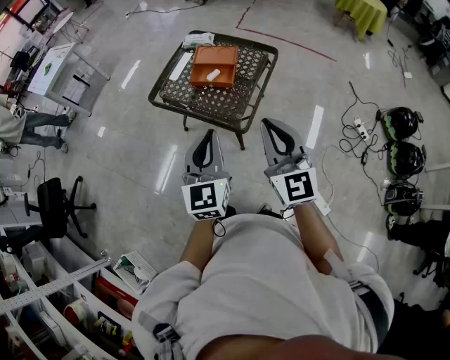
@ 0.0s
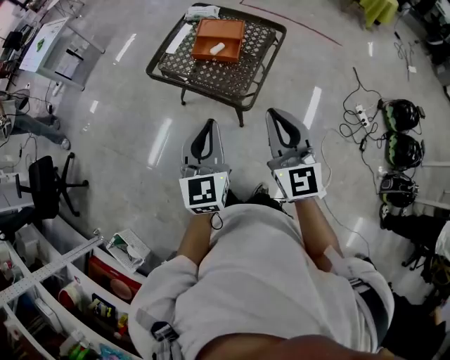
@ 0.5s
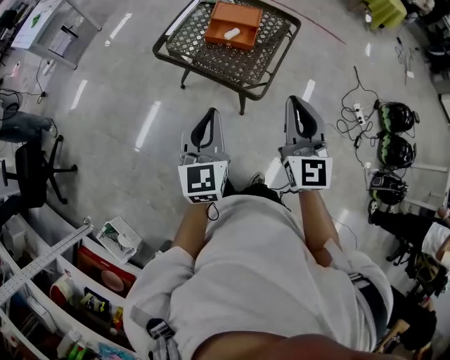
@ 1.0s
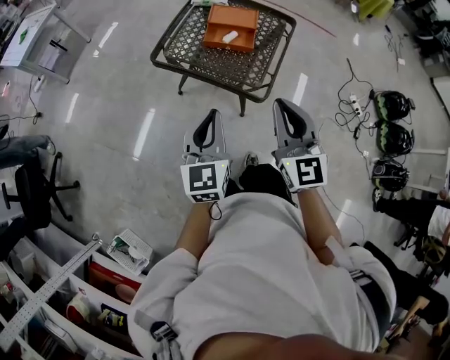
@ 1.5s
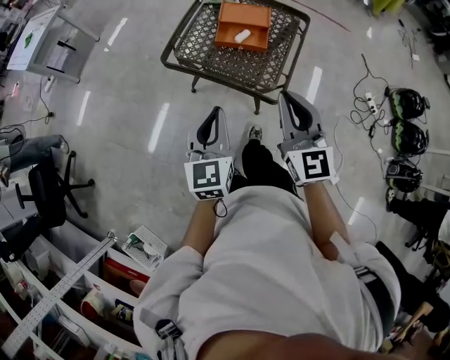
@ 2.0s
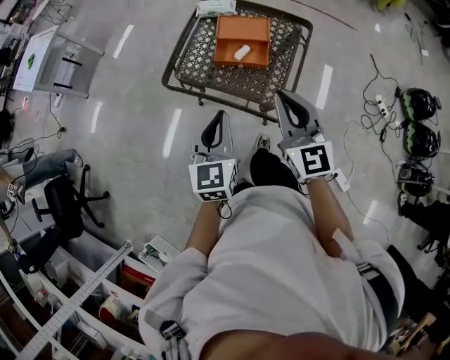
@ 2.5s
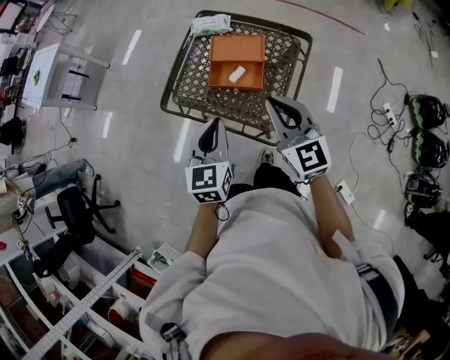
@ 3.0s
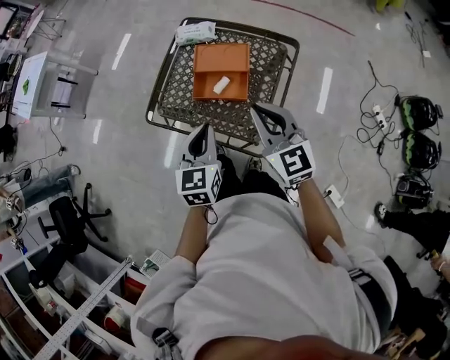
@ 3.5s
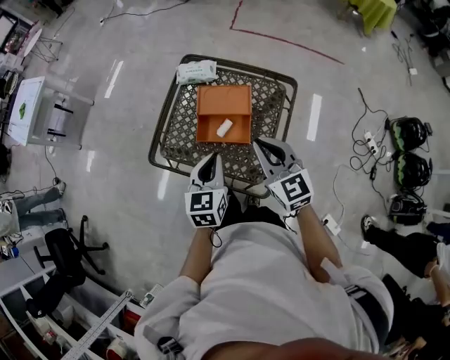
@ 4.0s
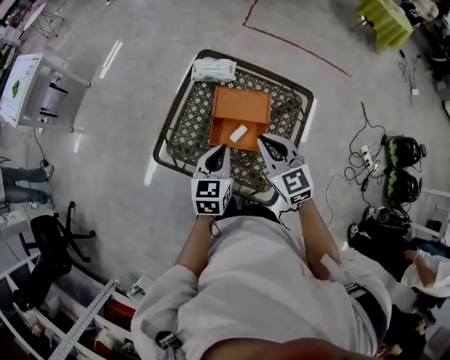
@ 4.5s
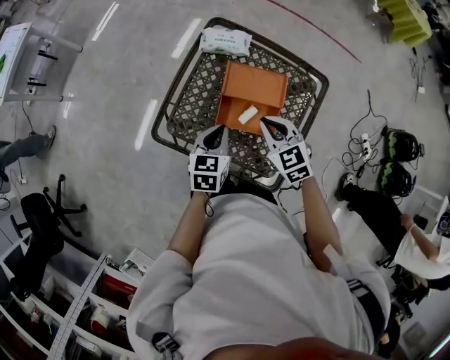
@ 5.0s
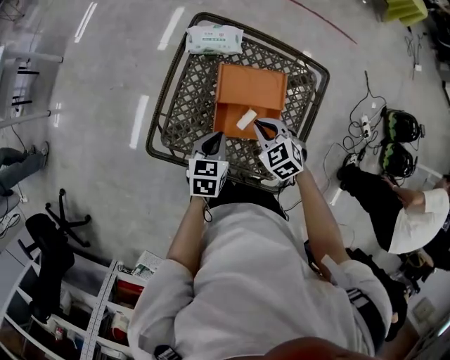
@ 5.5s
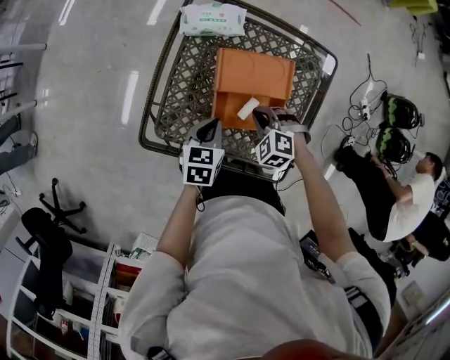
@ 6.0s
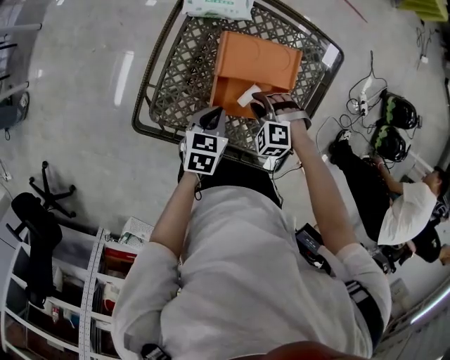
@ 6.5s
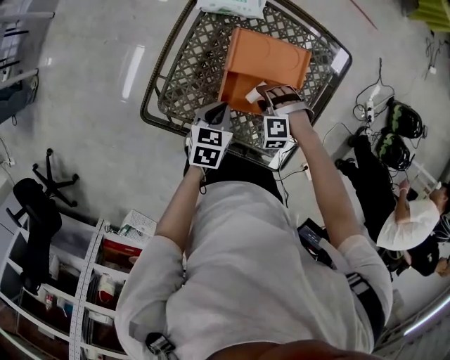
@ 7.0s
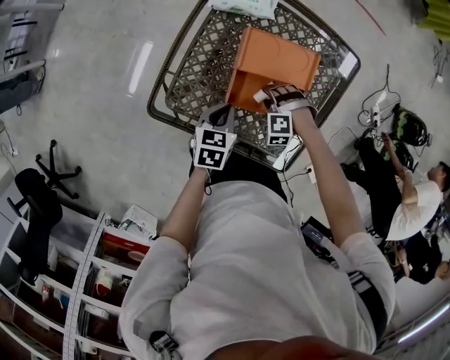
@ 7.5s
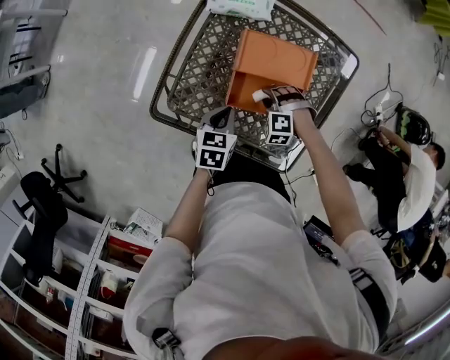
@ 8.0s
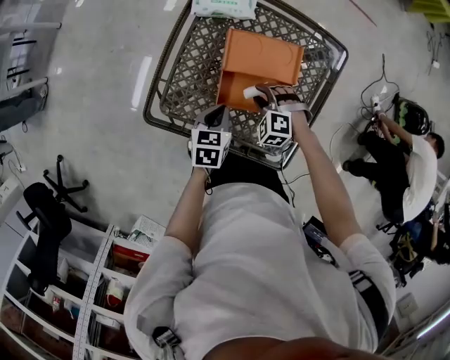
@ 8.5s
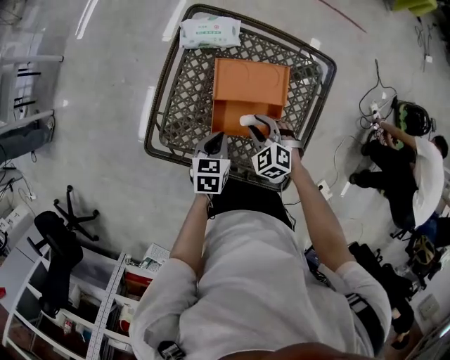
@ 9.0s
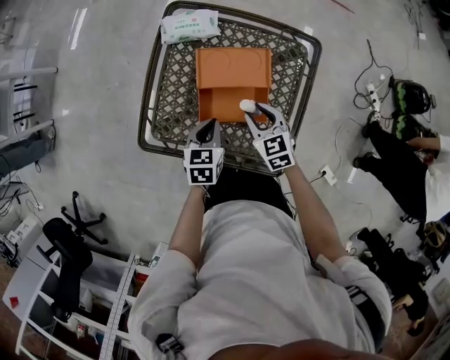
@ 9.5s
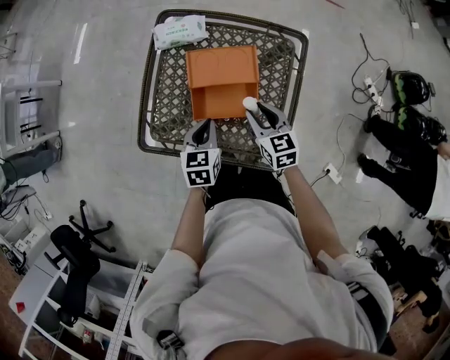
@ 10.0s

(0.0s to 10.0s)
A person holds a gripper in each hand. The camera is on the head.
0.0s - 2.0s: The right gripper is displaced to the left and forward by some 20 cm; the left gripper heads to the left, forward and downward, covering about 20 cm.
2.0s - 4.0s: The left gripper goes roughly 30 cm forward and to the right. Meanwhile the right gripper is displaced forward by approximately 30 cm.
4.0s - 6.0s: The right gripper goes roughly 35 cm downward and forward, and points its fingers some 50 degrees further downward, while the left gripper goes about 30 cm downward, forward and to the left, and changes its angle by approximately 30 degrees.
6.0s - 8.0s: The right gripper shifts some 5 cm downward, rotates some 30 degrees, and opens.
8.0s - 10.0s: The right gripper goes roughly 15 cm upward, and twists about 80 degrees clockwise, seen from behind. The left gripper heads upward, covering roughly 10 cm.

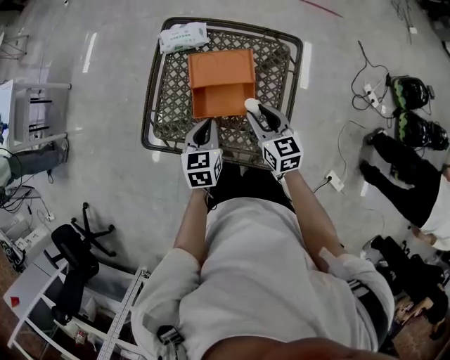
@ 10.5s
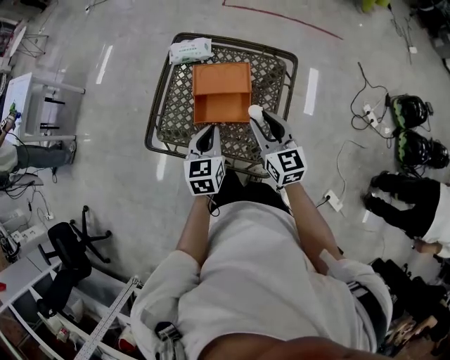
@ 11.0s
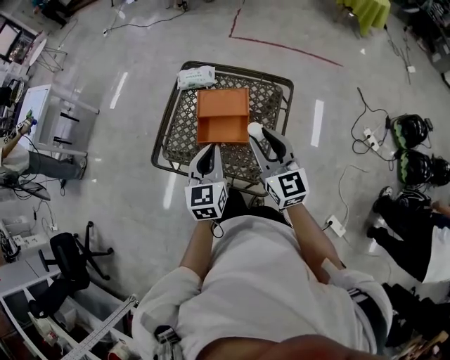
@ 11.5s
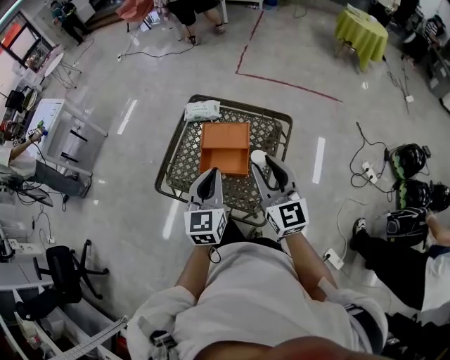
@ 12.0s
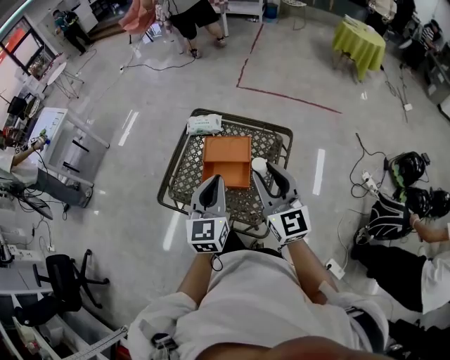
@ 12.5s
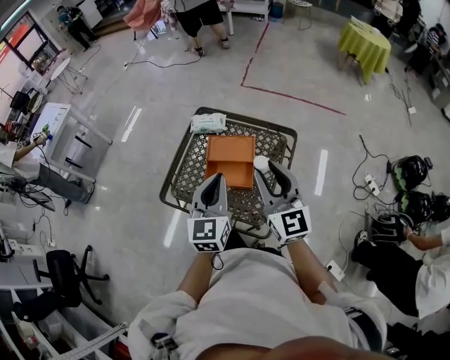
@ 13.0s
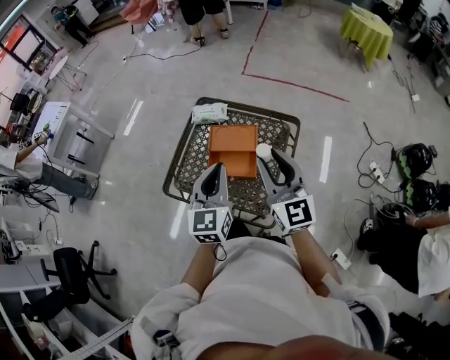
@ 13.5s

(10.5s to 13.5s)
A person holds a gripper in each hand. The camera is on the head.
10.5s - 12.0s: The right gripper shifts about 25 cm upward, and changes its angle by approximately 30 degrees; the left gripper shifts roughly 25 cm upward and backward, and swivels about 30 degrees.
12.0s - 13.5s: There are only small adjustments of the grippers.

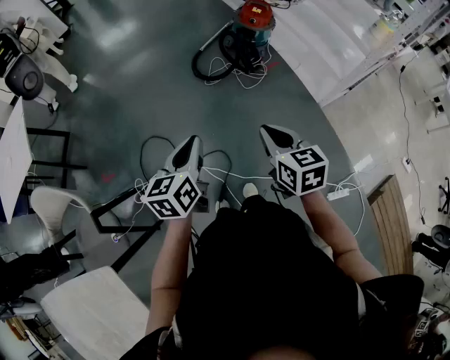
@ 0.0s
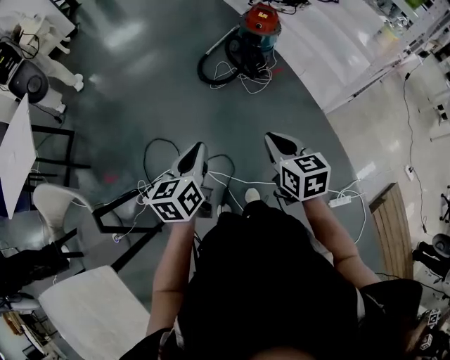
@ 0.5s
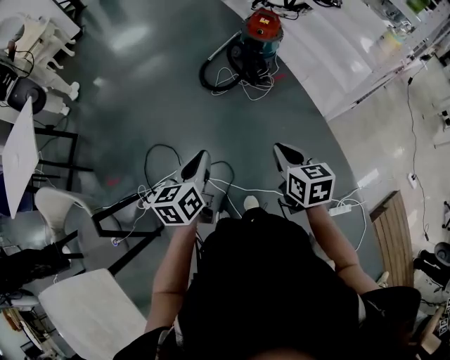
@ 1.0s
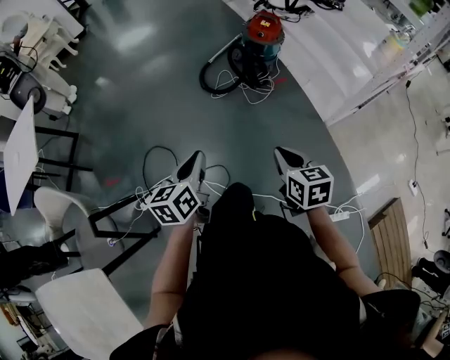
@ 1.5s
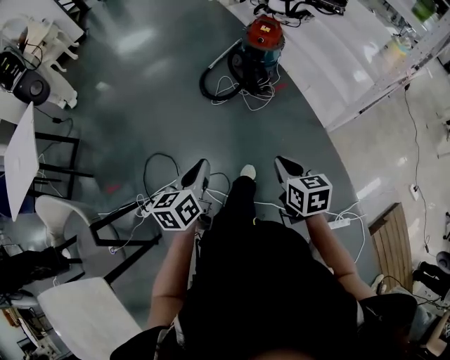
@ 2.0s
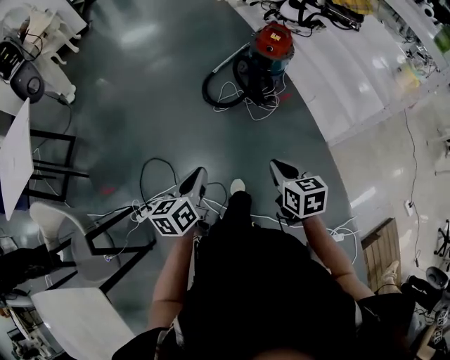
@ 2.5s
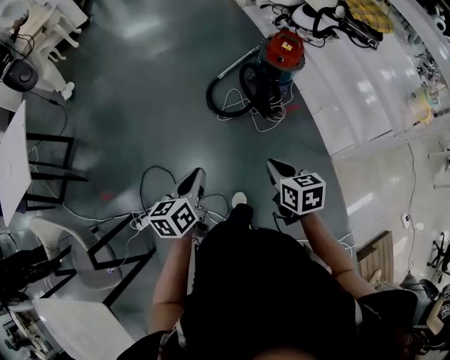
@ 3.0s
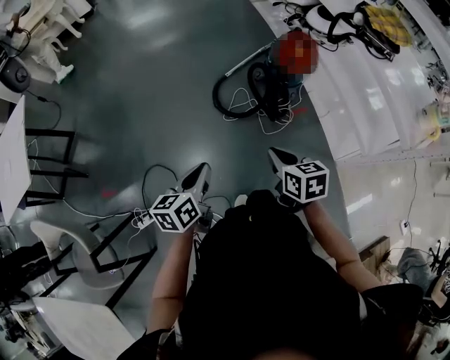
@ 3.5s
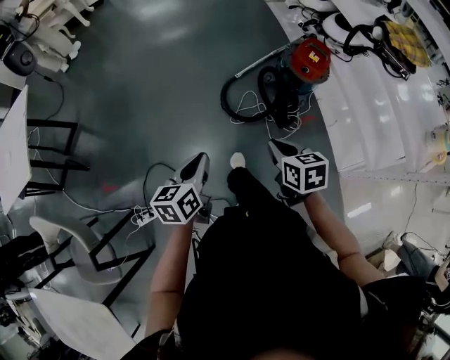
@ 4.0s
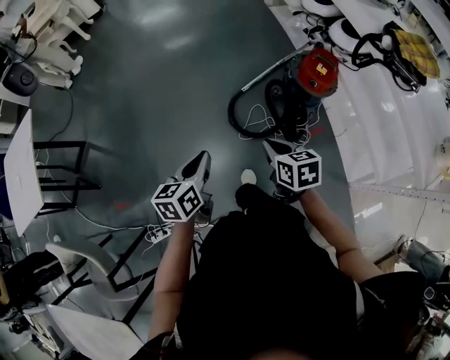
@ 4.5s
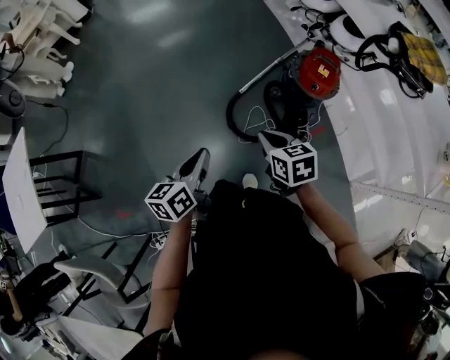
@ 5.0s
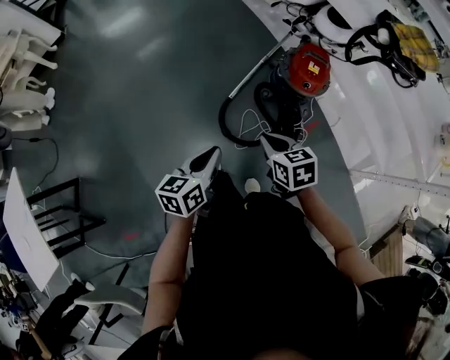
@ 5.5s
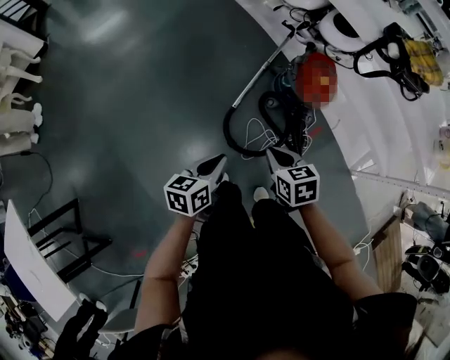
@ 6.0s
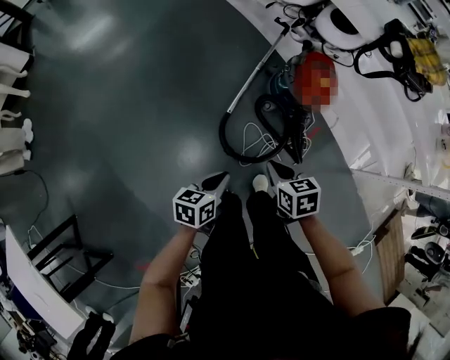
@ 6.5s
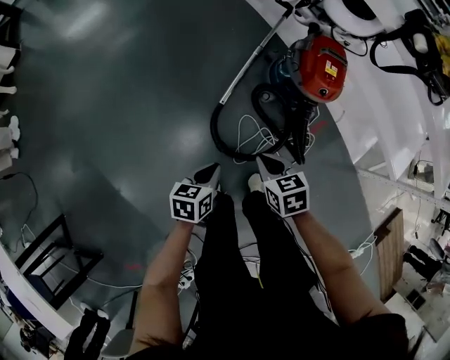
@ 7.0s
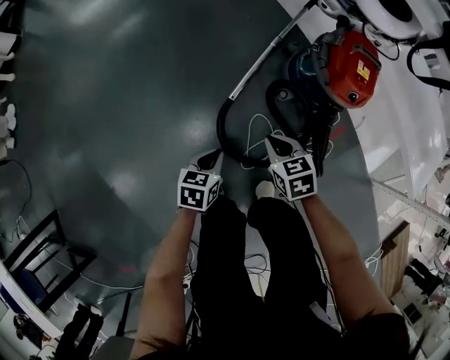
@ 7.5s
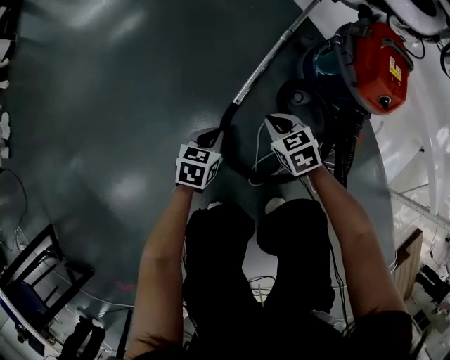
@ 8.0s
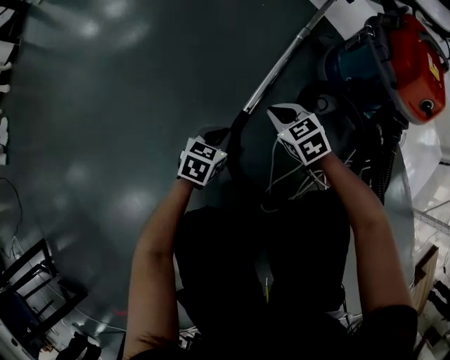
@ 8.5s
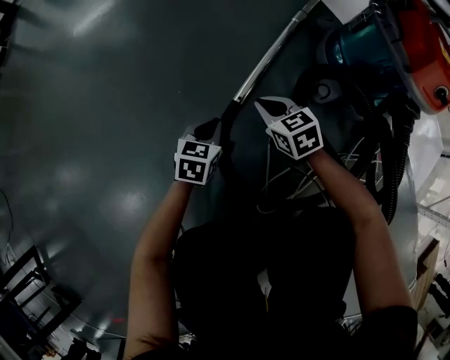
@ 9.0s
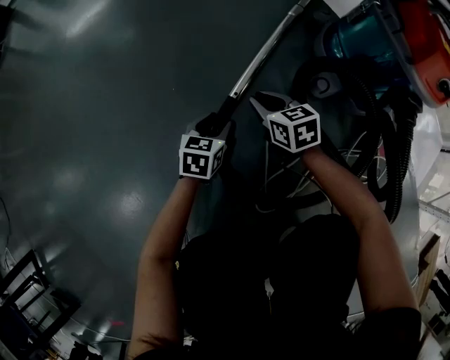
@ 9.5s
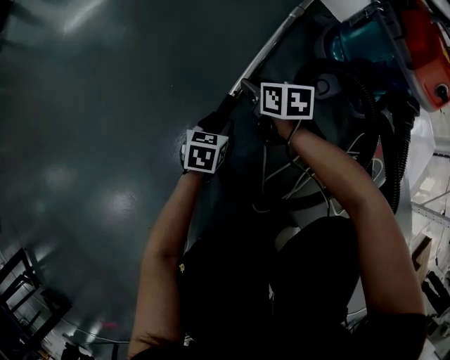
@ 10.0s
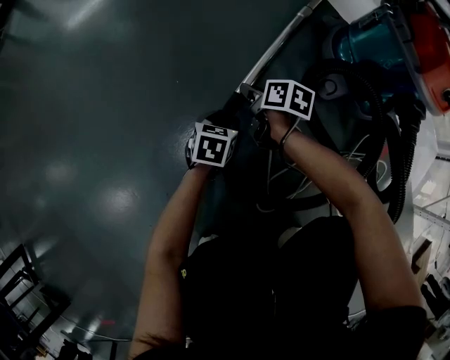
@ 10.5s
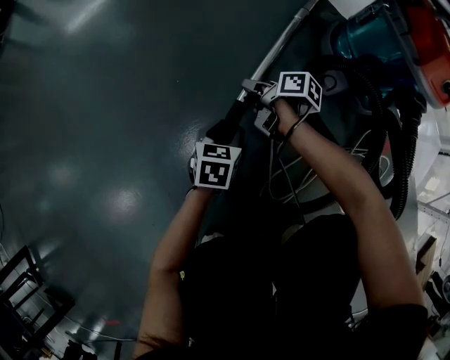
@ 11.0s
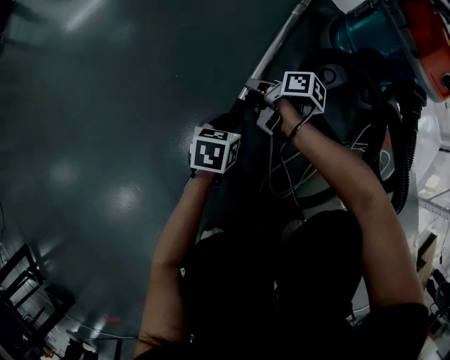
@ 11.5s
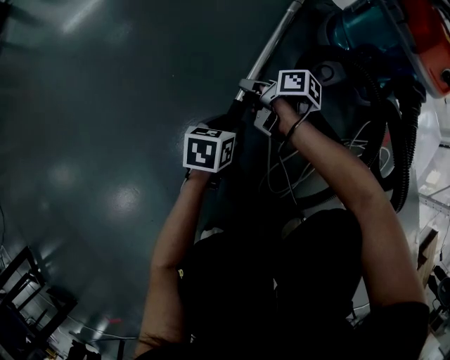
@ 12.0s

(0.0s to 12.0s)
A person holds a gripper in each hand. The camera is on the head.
0.0s - 2.0s: The right gripper goes some 10 cm to the right and downward, while the left gripper goes some 5 cm to the right.
2.0s - 4.0s: The two grippers go some 35 cm forward.
4.0s - 6.0s: The right gripper changes place by approximately 35 cm; the left gripper moves about 40 cm, and swivels some 40 degrees.
6.0s - 8.0s: The grippers both shift downward and forward by roughly 50 cm. The left gripper rotates some 30 degrees.
8.0s - 10.0s: The right gripper moves downward and forward, approximately 25 cm, turns by about 30 degrees, and opens its fingers; the left gripper shifts about 25 cm downward, and opens up.
10.0s - 12.0s: The left gripper shifts by roughly 5 cm. Meanwhile the right gripper ends up roughly 5 cm from where it was, and rotates around the line of its fingers by some 40 degrees, clockwise from behind.

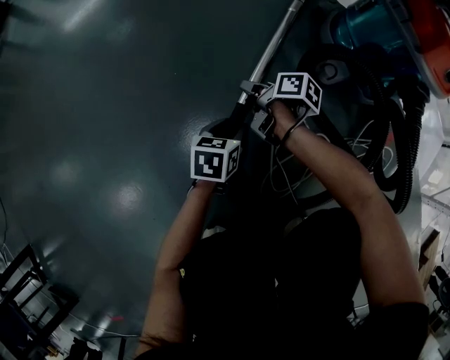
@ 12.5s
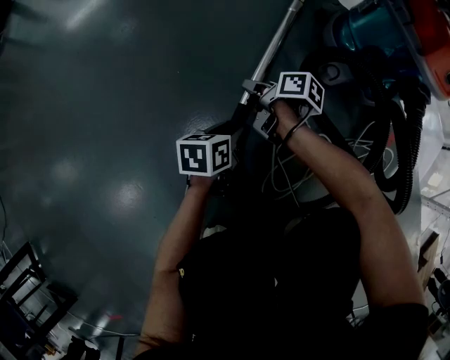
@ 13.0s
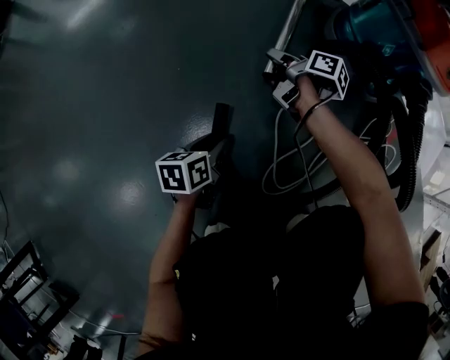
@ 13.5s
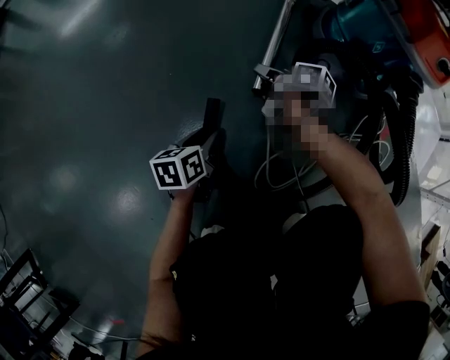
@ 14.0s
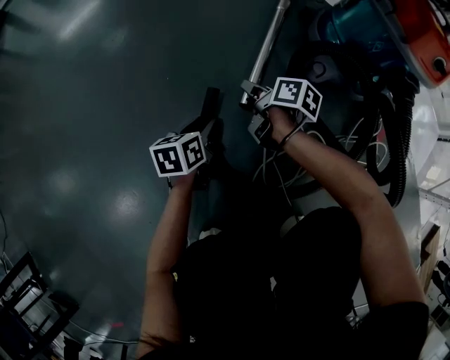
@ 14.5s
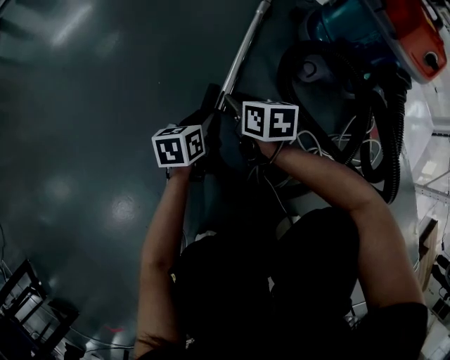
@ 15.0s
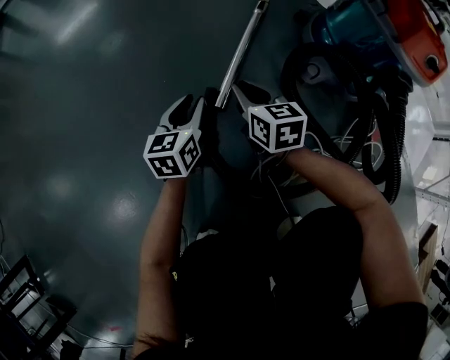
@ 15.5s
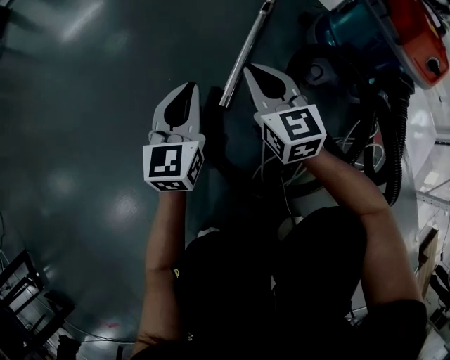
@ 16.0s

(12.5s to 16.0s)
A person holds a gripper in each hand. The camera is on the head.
12.5s - 14.5s: The left gripper travels to the left by some 5 cm.
14.5s - 16.0s: Both grippers travel together upward, some 15 cm. The left gripper tips its fingers upward by about 30 degrees, and closes its fingers. Meanwhile the right gripper twists approximately 70 degrees counterclockwise, seen from behind, and closes up.
